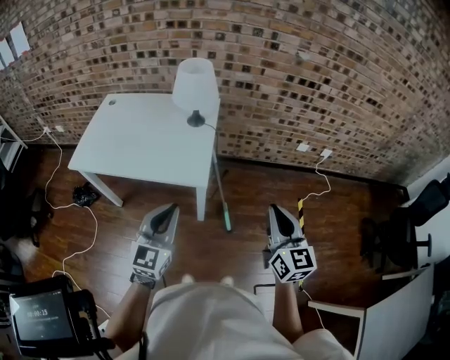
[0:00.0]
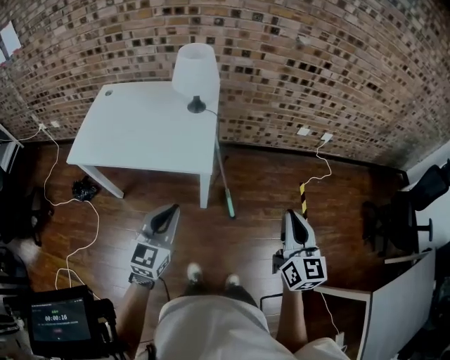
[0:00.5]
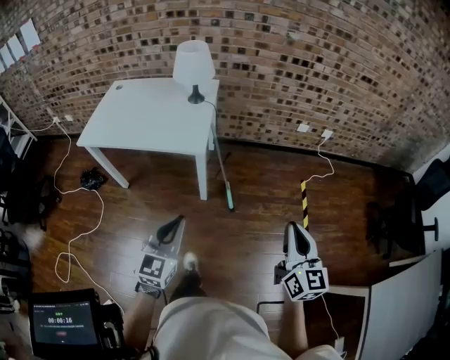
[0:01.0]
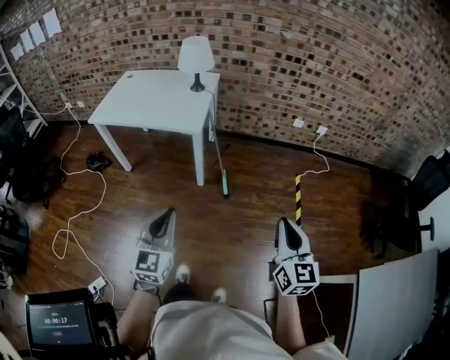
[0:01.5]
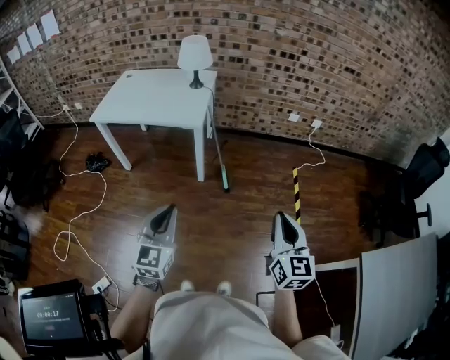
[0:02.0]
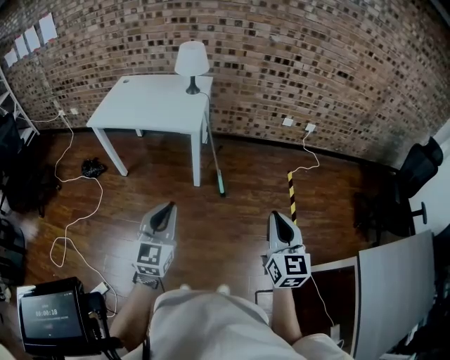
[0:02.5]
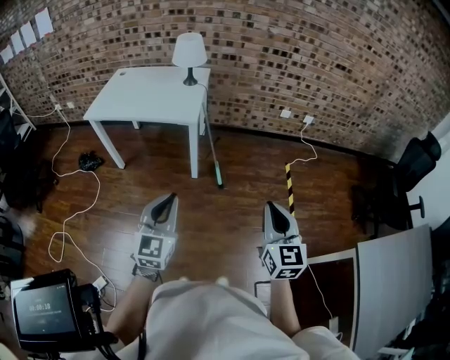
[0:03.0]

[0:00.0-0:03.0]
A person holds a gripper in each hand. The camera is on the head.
0:00.0 to 0:01.5: The left gripper shifts approximately 30 cm backward, while the right gripper heads backward and to the right, covering about 35 cm.
0:01.5 to 0:03.0: The right gripper goes approximately 10 cm to the left and backward. The left gripper ends up about 5 cm from where it was.

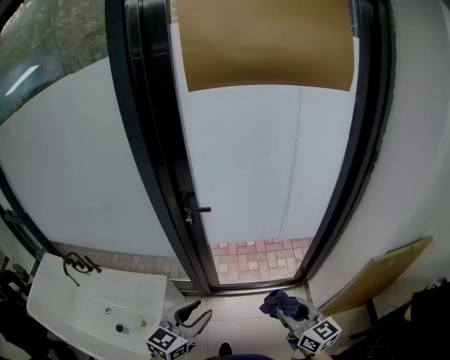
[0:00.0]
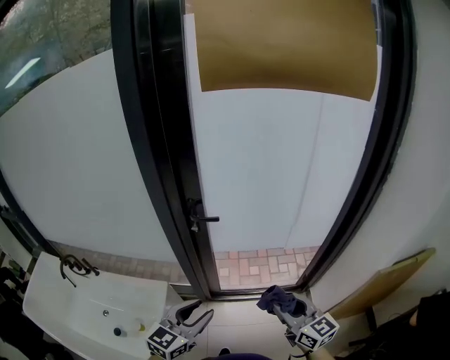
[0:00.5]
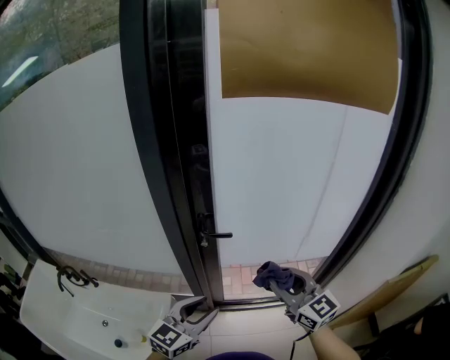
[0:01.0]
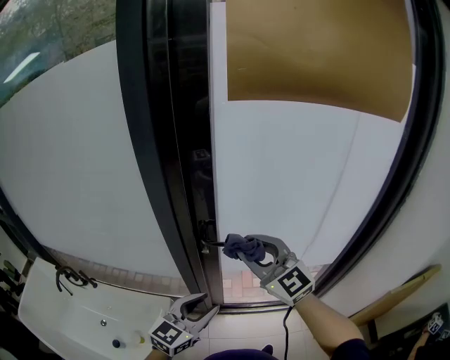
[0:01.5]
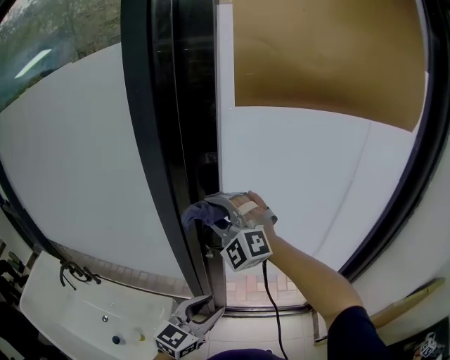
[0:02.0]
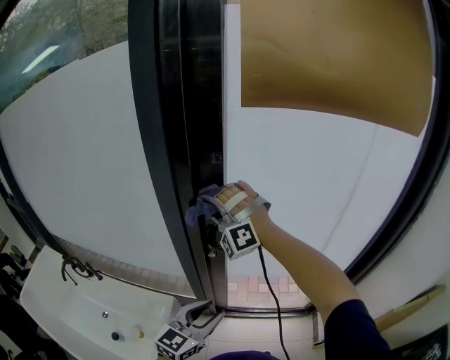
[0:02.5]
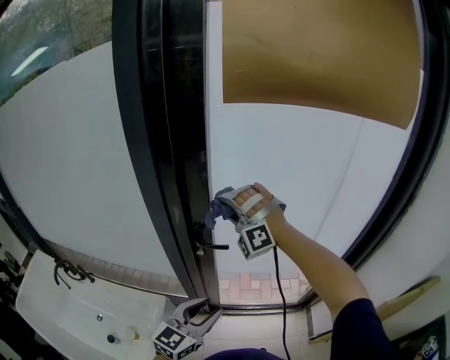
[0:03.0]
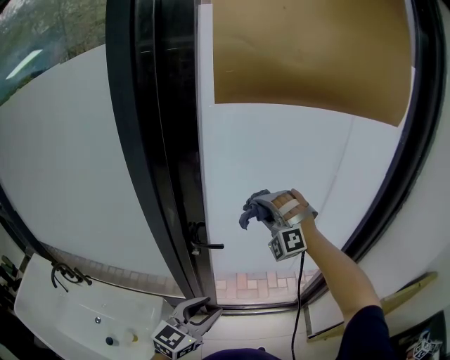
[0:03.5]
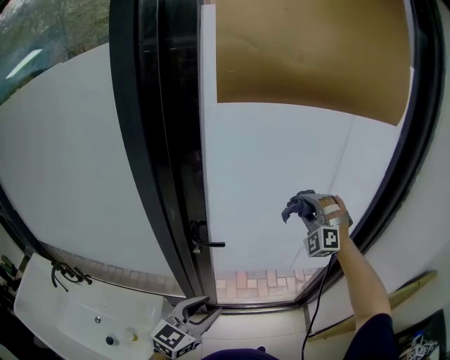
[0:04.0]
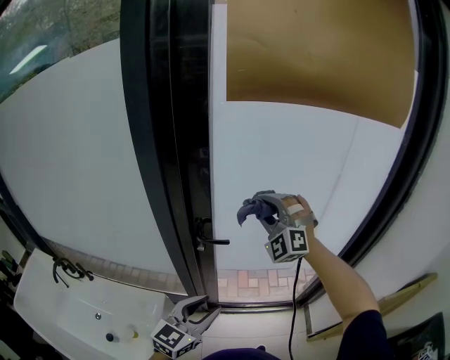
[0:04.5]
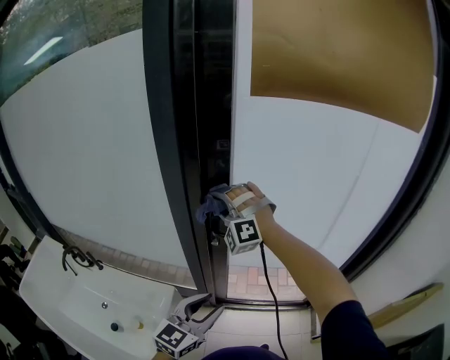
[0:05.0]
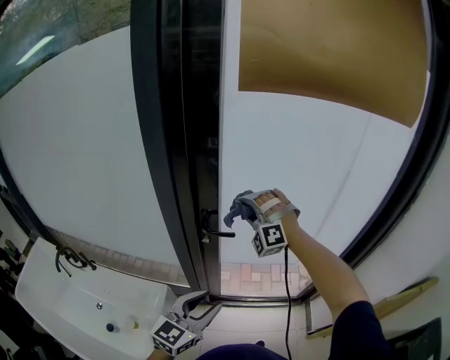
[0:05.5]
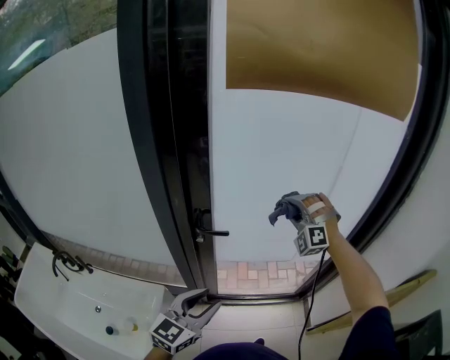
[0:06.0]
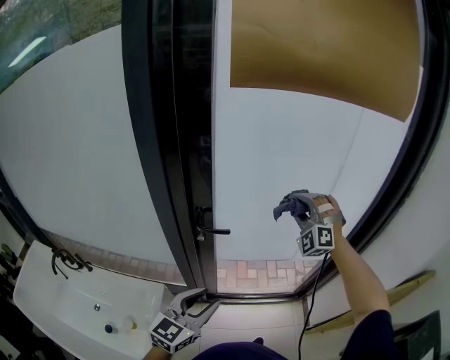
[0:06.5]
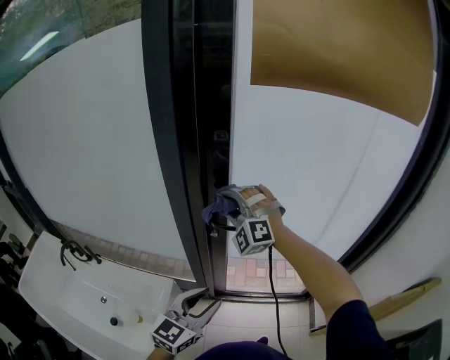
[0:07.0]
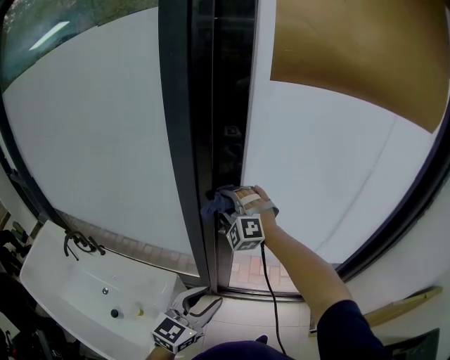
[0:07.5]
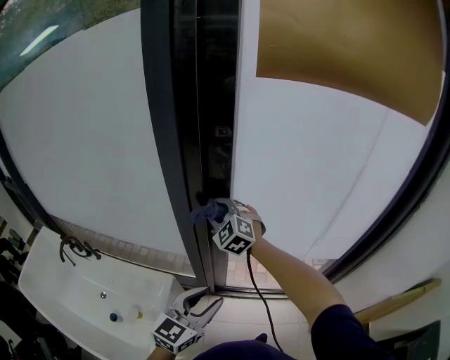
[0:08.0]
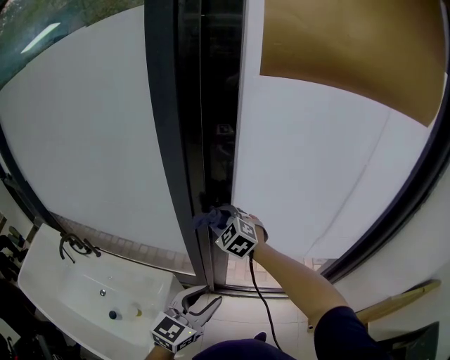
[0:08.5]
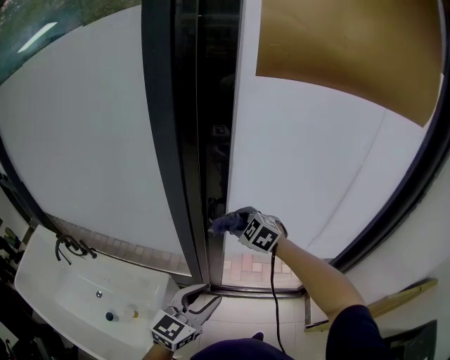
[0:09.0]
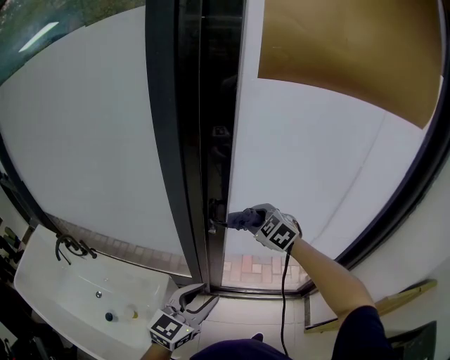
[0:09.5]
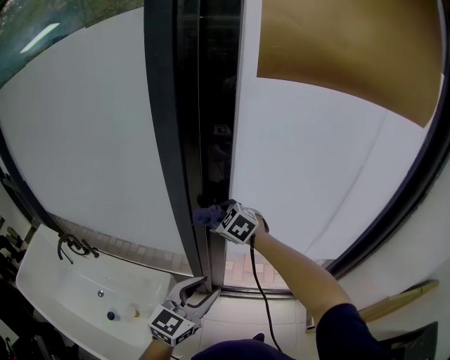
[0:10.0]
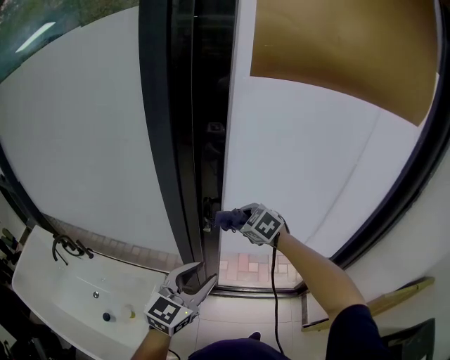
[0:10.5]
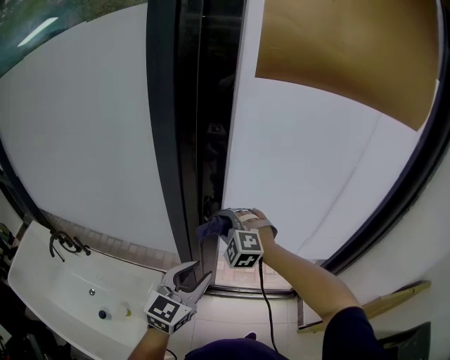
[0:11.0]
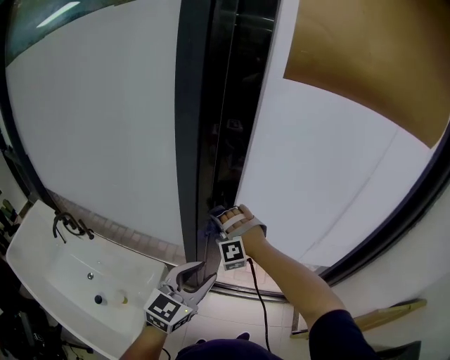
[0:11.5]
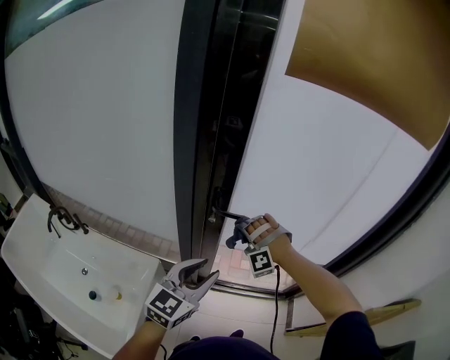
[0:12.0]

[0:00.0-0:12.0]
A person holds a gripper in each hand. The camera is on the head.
0:00.0 to 0:02.0: The left gripper goes roughly 20 cm forward; the right gripper moves forward, to the left and upward, approximately 50 cm, and twists about 90 degrees counterclockwise, seen from behind.
0:02.0 to 0:04.0: The right gripper heads to the right, covering about 30 cm, and turns by roughly 40 degrees.
0:04.0 to 0:06.0: The right gripper moves downward, about 5 cm, and reaches roughly 35 cm to the left, then returns.
0:06.0 to 0:08.0: The right gripper moves to the left, roughly 30 cm, and rotates some 50 degrees.
0:08.0 to 0:10.0: The right gripper goes to the right and returns, some 10 cm each way, and rotates roughly 20 degrees.
0:10.0 to 0:12.0: The right gripper moves left and right over some 10 cm, changing direction 2 times, and rolls counterclockwise, seen from behind, by approximately 70 degrees.

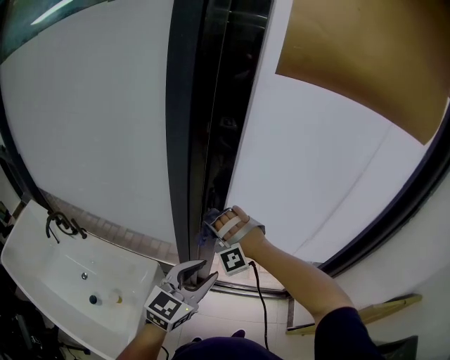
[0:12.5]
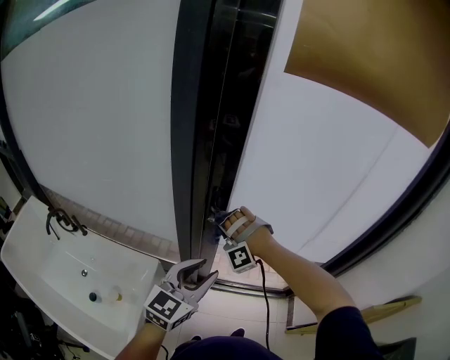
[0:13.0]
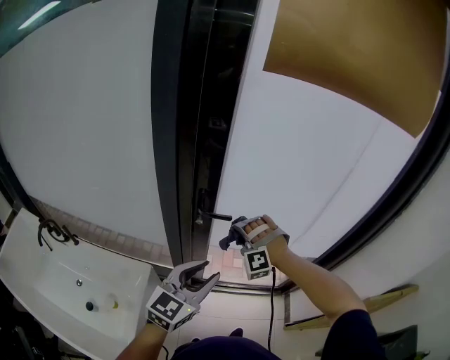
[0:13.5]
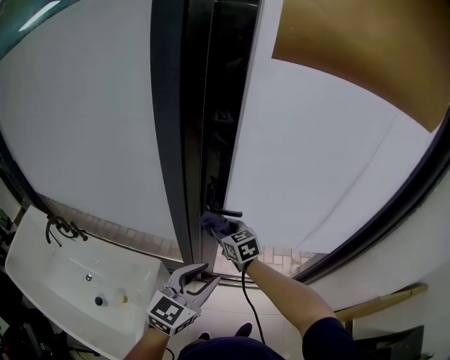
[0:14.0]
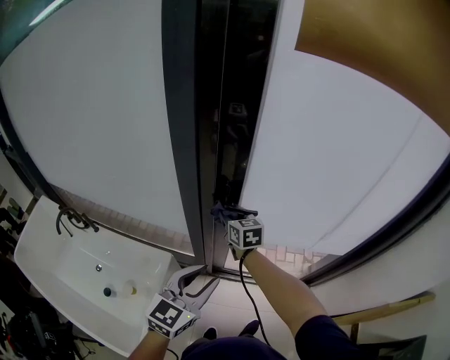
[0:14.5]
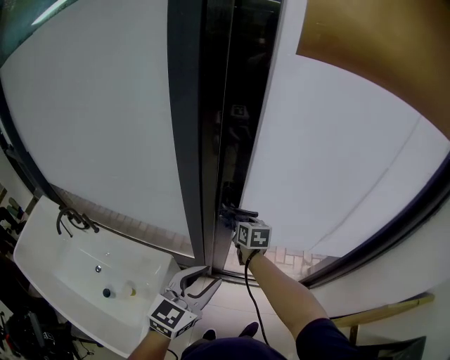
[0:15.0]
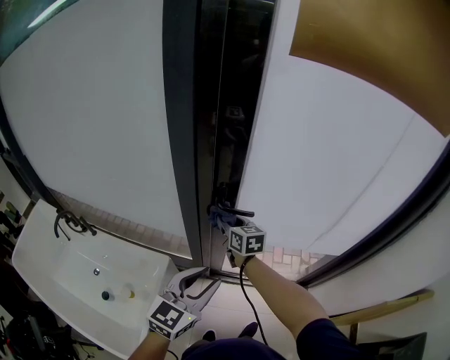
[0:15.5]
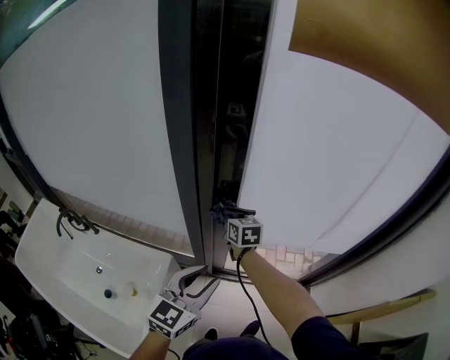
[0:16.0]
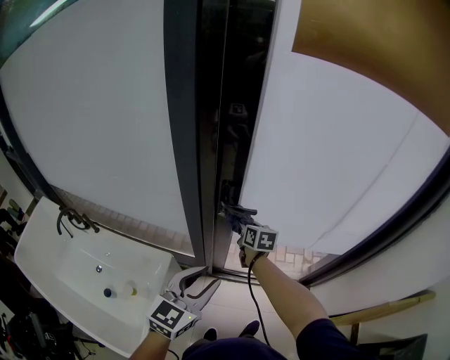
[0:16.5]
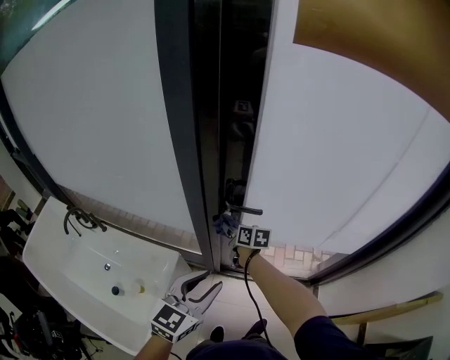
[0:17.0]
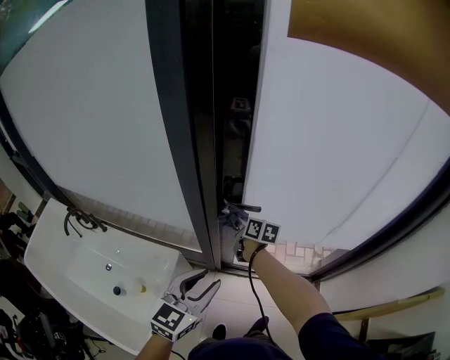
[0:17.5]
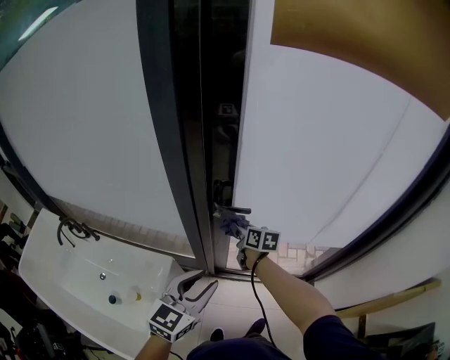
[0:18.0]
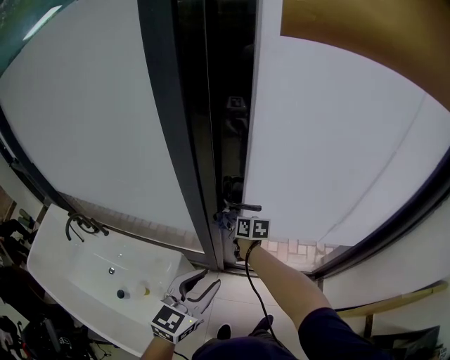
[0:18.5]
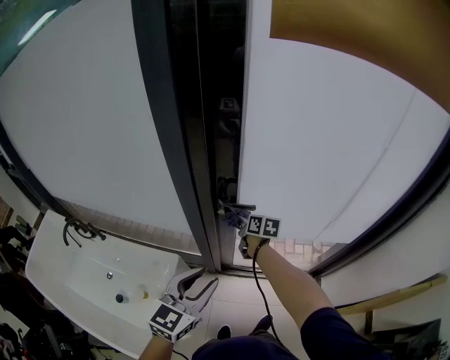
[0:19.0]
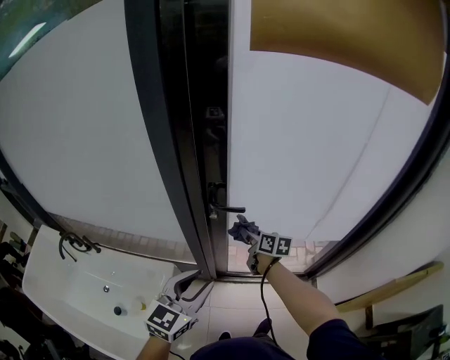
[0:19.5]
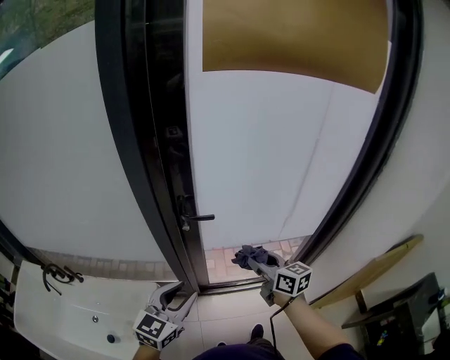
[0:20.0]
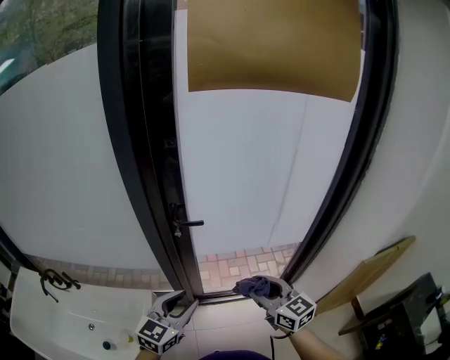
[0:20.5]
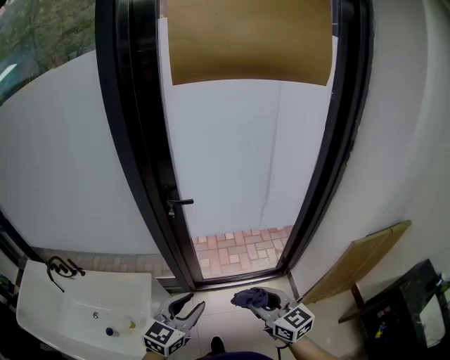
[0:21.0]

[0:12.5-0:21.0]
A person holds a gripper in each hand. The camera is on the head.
0:12.5 to 0:14.5: The right gripper travels forward and downward by about 10 cm, goes to the right and returns, some 15 cm each way, and twists roughly 120 degrees clockwise, seen from behind.
0:14.5 to 0:16.5: The right gripper goes left and right, approximately 5 cm each way, reversing 2 times.
0:16.5 to 0:19.0: The right gripper swings left and right, some 5 cm each way, with 3 reversals.
0:19.0 to 0:21.0: The left gripper shifts roughly 20 cm backward and to the right. The right gripper moves backward and to the right, about 50 cm, and rotates approximately 40 degrees.

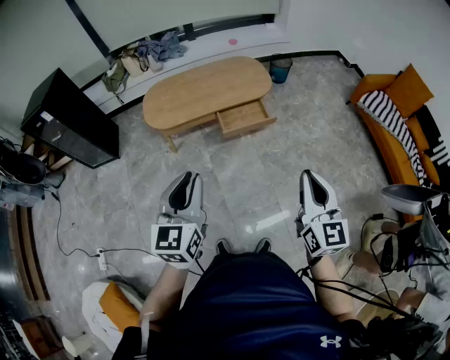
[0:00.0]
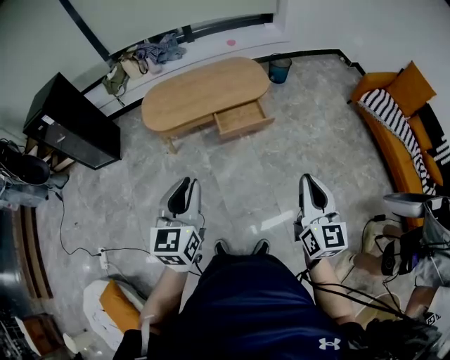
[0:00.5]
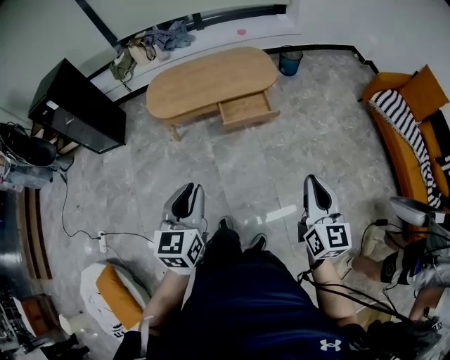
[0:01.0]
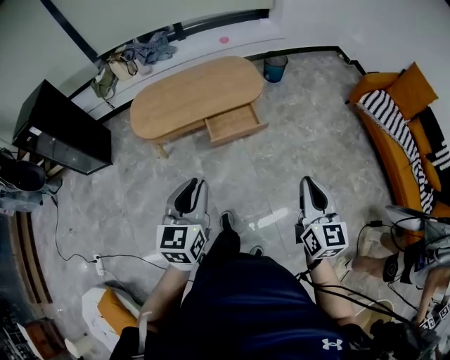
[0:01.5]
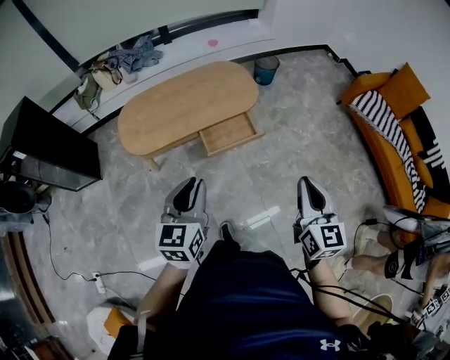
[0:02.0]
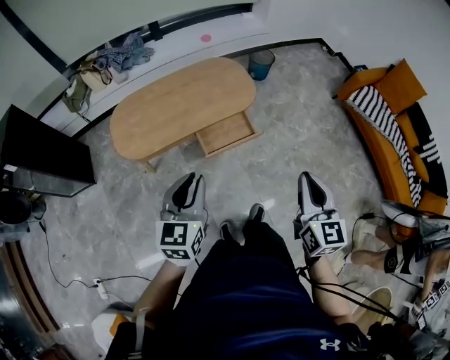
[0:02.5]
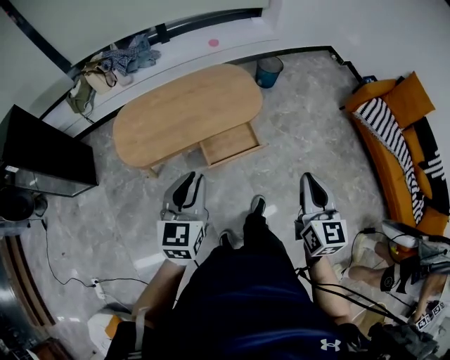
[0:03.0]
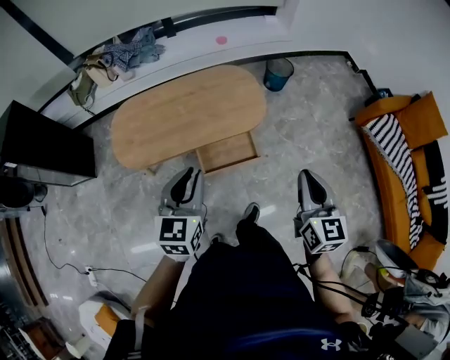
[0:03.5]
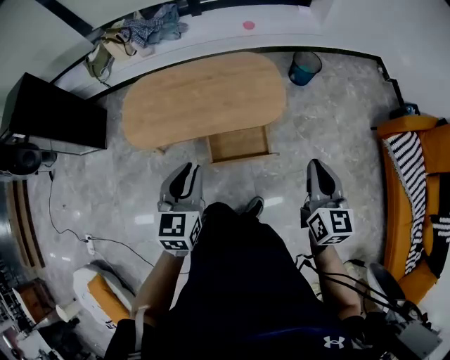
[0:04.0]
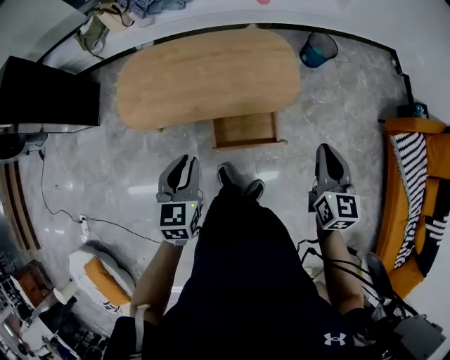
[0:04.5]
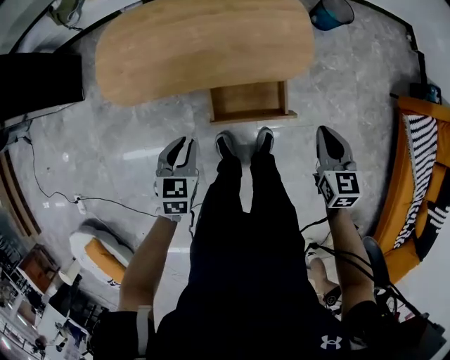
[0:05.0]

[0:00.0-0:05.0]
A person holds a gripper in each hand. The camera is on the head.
0:00.0 to 0:02.5: The grippers both shift forward by some 25 cm.
0:02.5 to 0:05.0: The right gripper moves forward and downward, about 50 cm, and turns by roughly 40 degrees, while the left gripper goes about 35 cm downward and forward, and angles its fingers downward, by roughly 30 degrees.
